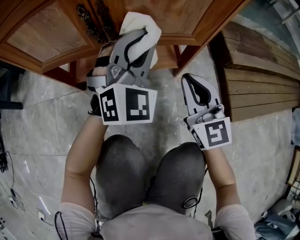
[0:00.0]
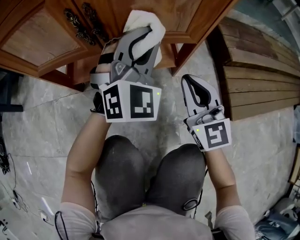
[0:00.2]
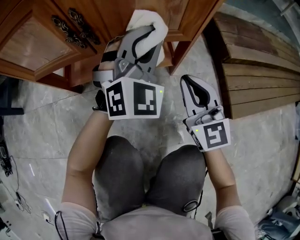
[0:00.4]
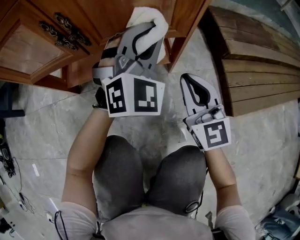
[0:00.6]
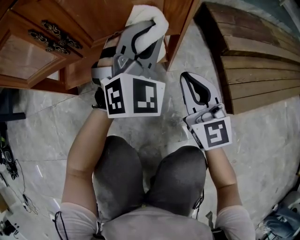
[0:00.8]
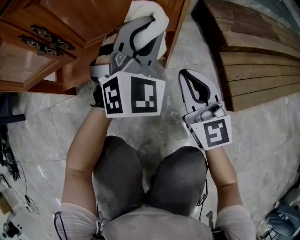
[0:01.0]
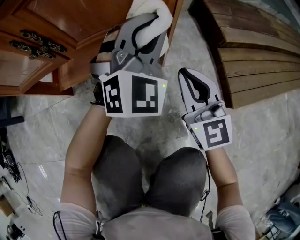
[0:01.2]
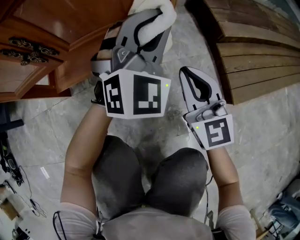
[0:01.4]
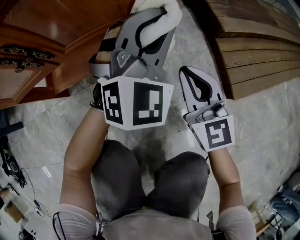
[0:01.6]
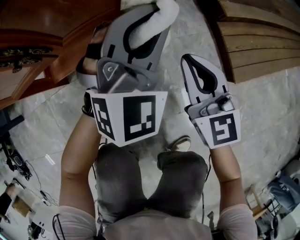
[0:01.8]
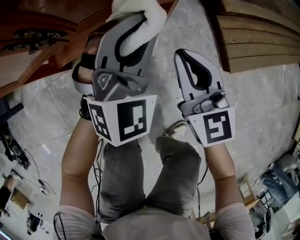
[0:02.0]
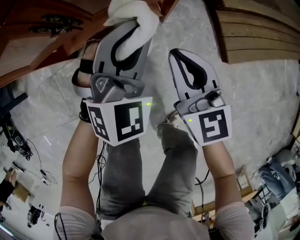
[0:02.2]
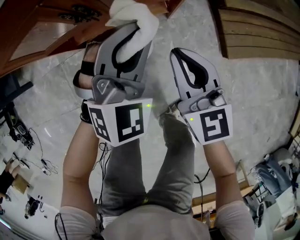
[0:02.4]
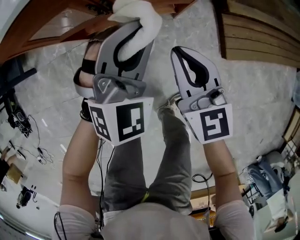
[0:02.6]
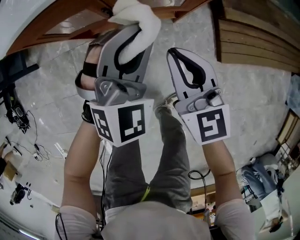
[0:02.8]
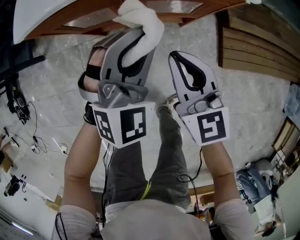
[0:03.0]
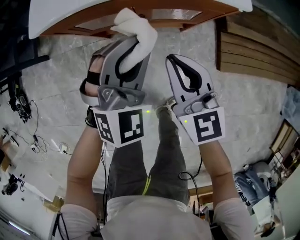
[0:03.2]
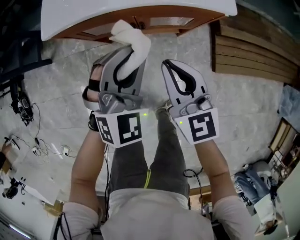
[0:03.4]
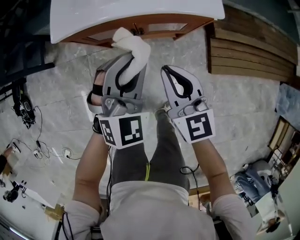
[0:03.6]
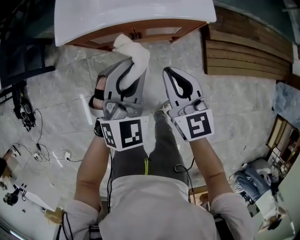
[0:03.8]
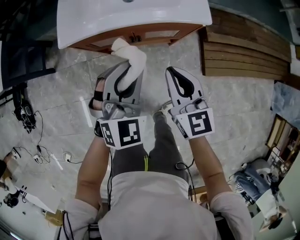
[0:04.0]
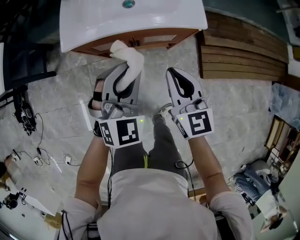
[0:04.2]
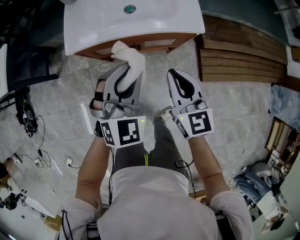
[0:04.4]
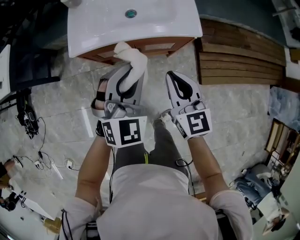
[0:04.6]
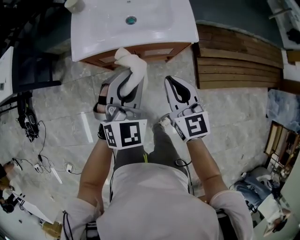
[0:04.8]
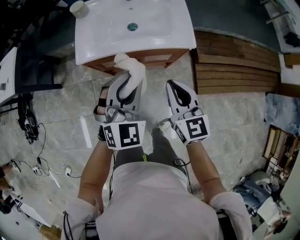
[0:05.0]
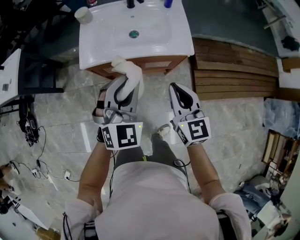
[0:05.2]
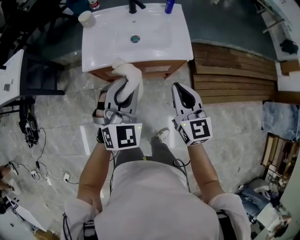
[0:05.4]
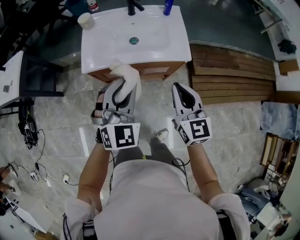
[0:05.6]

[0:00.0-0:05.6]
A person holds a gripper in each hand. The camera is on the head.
0:00.0 to 0:01.4: The left gripper is displaced to the right by roughly 15 cm; the right gripper travels to the right and downward by some 15 cm.
0:01.4 to 0:02.8: The grippers both shift upward and to the left by some 35 cm.
0:02.8 to 0:04.2: The two grippers go roughly 30 cm upward.
0:04.2 to 0:05.6: Both grippers travel together upward, roughly 15 cm.

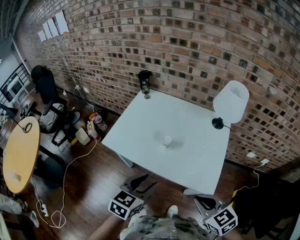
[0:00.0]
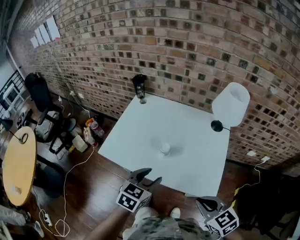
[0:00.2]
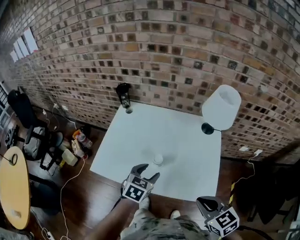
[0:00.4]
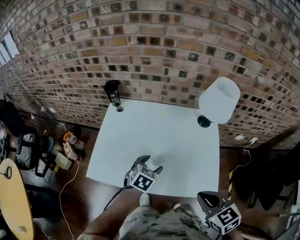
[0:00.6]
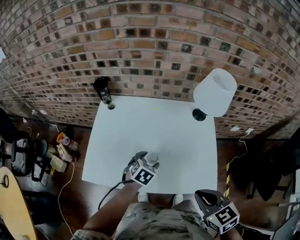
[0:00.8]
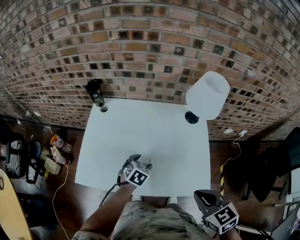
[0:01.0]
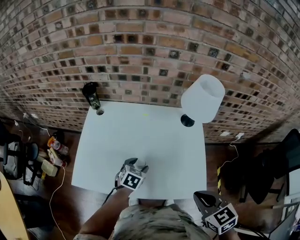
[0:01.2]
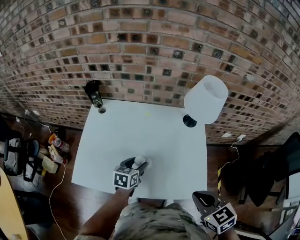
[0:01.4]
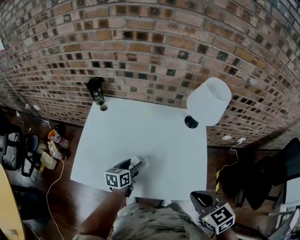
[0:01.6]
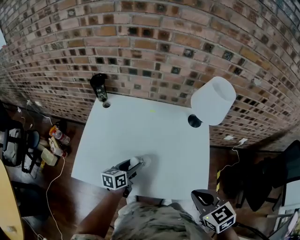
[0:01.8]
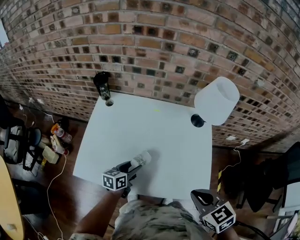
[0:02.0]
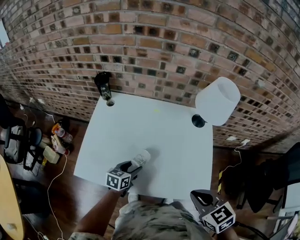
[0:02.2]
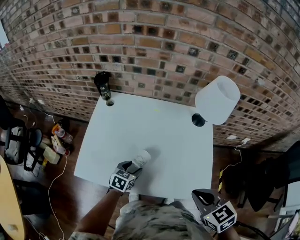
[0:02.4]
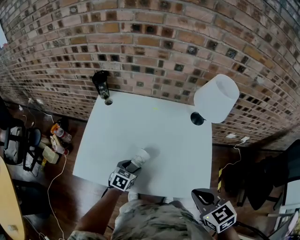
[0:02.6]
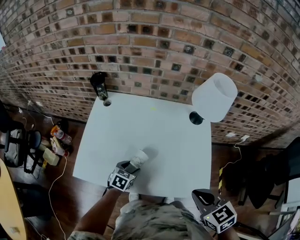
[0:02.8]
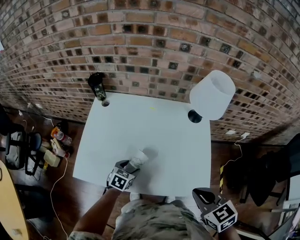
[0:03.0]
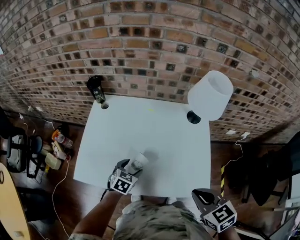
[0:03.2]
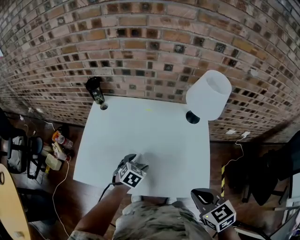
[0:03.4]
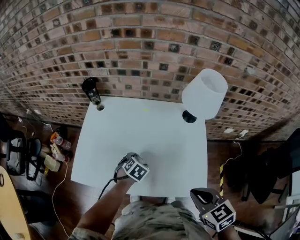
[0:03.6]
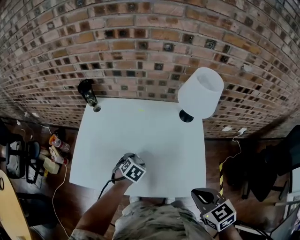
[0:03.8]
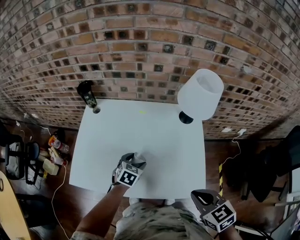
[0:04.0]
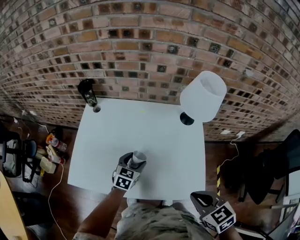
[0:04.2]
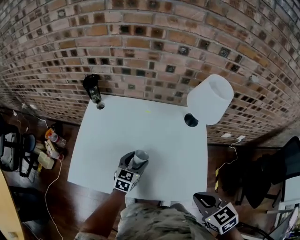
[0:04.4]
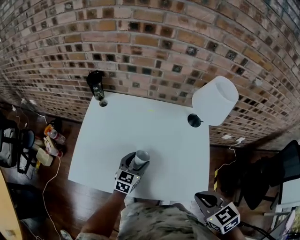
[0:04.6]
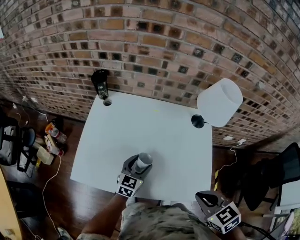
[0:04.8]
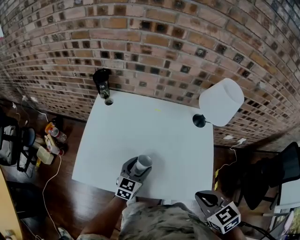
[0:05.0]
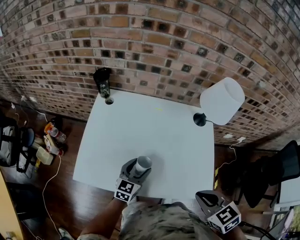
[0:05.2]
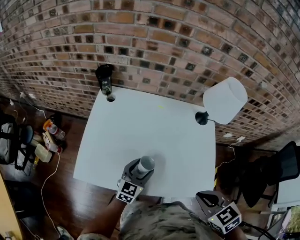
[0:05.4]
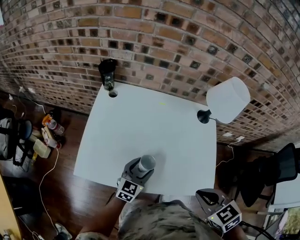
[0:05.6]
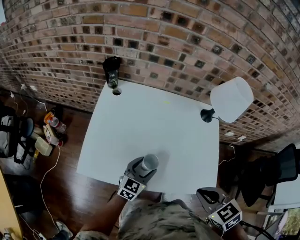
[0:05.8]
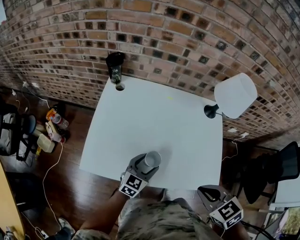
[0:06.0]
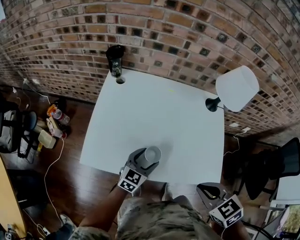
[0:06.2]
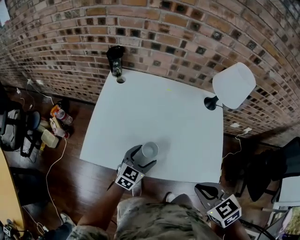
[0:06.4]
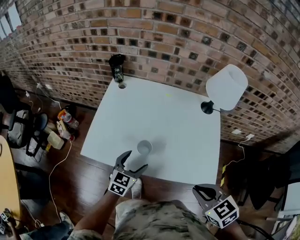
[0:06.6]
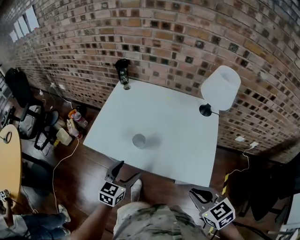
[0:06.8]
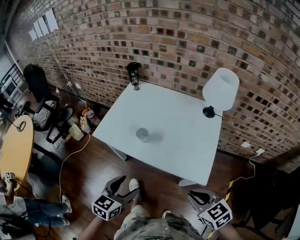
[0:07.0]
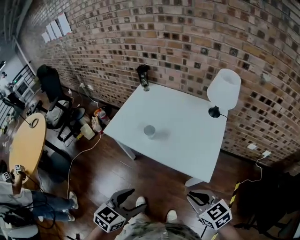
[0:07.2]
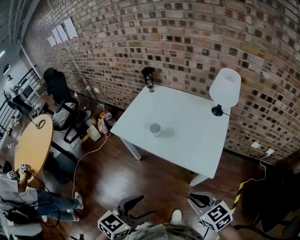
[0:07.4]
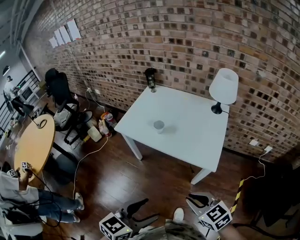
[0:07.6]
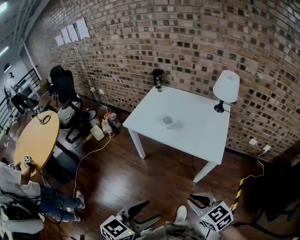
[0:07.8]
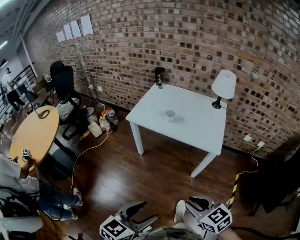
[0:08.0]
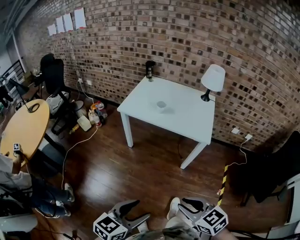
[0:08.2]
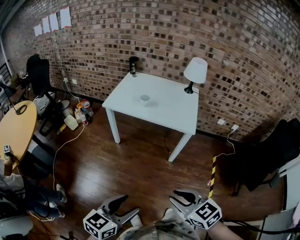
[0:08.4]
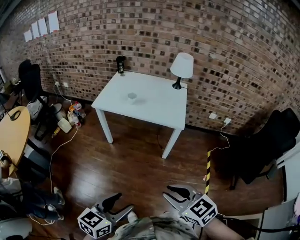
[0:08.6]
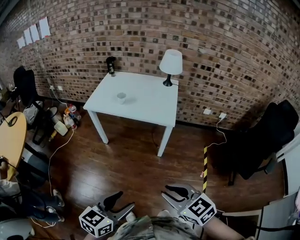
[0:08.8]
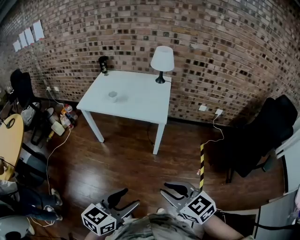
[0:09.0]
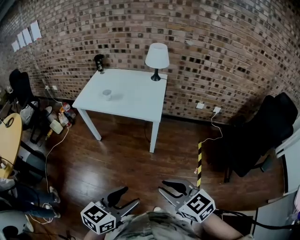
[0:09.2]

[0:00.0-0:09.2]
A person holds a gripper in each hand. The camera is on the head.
0:00.0 to 0:01.6: The left gripper goes about 30 cm forward and downward, and changes its angle by about 30 degrees, while the right gripper is displaced forward by about 15 cm, and changes its angle by about 20 degrees.
0:01.6 to 0:03.0: The left gripper goes some 5 cm downward, and turns by about 30 degrees.
0:03.0 to 0:04.6: The left gripper moves forward and upward, roughly 10 cm, and changes its angle by some 30 degrees.
0:04.6 to 0:06.2: The left gripper travels backward and to the left by roughly 10 cm, while the right gripper travels to the left by roughly 10 cm.
0:06.2 to 0:07.6: The left gripper moves backward and upward, some 60 cm; the right gripper goes approximately 30 cm backward, and rotates about 30 degrees.
0:07.6 to 0:09.2: Both grippers move backward, approximately 30 cm.

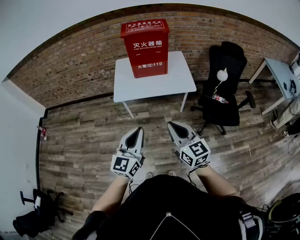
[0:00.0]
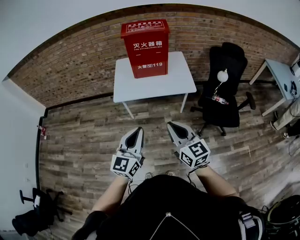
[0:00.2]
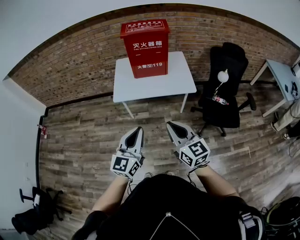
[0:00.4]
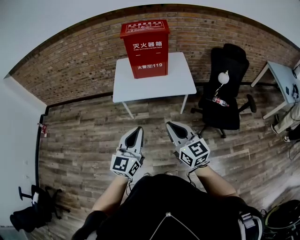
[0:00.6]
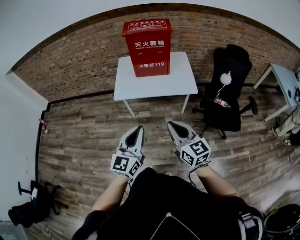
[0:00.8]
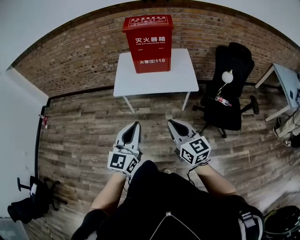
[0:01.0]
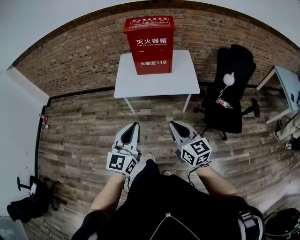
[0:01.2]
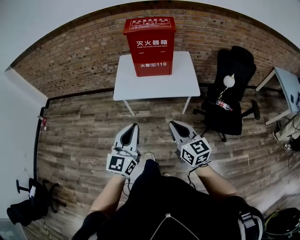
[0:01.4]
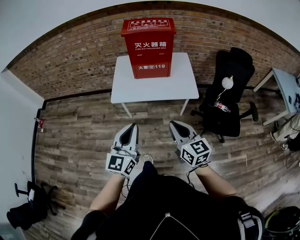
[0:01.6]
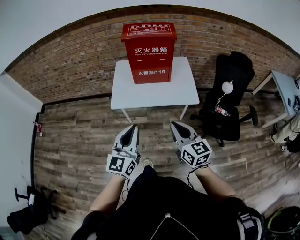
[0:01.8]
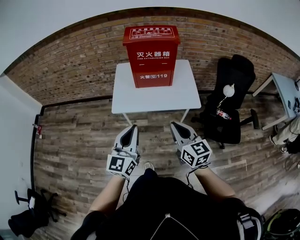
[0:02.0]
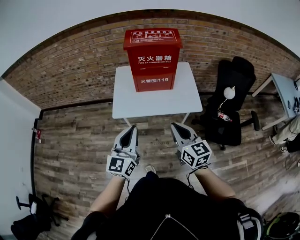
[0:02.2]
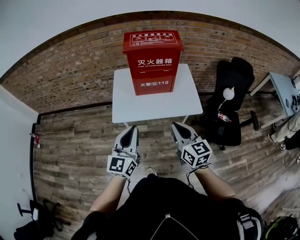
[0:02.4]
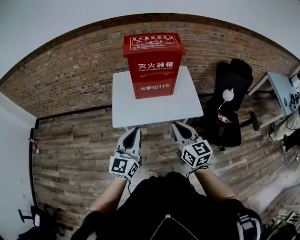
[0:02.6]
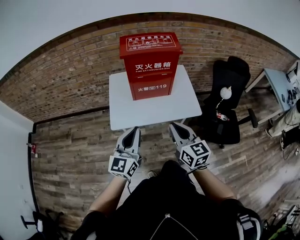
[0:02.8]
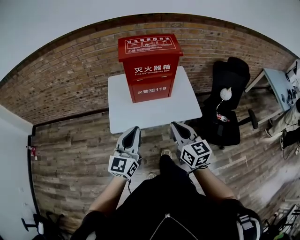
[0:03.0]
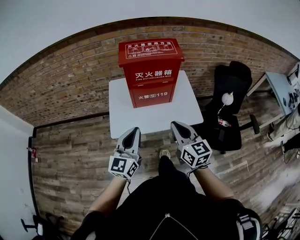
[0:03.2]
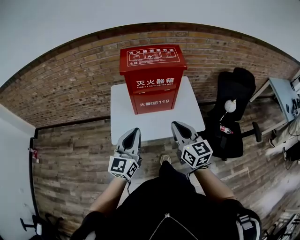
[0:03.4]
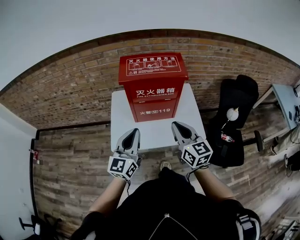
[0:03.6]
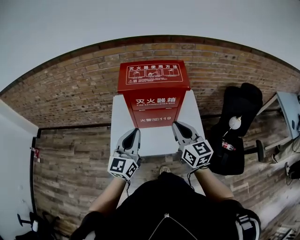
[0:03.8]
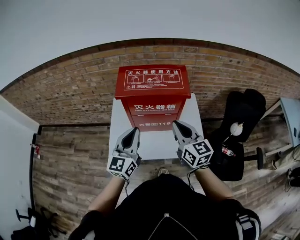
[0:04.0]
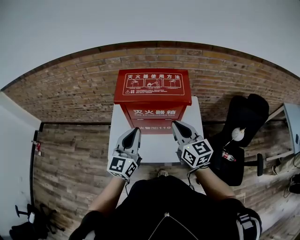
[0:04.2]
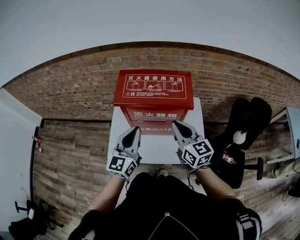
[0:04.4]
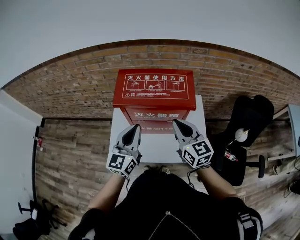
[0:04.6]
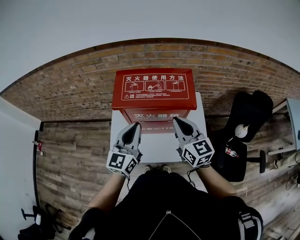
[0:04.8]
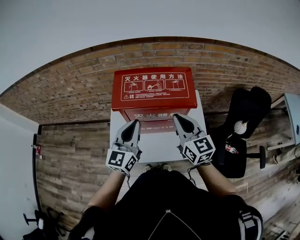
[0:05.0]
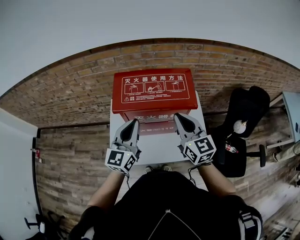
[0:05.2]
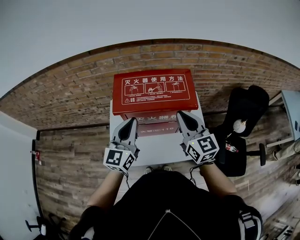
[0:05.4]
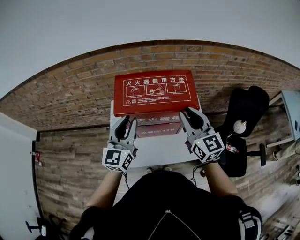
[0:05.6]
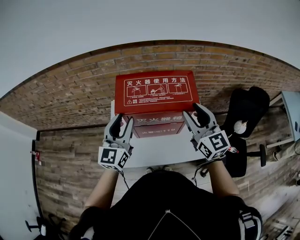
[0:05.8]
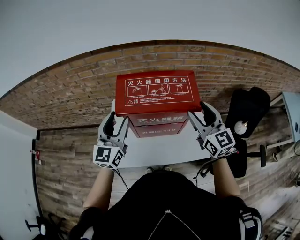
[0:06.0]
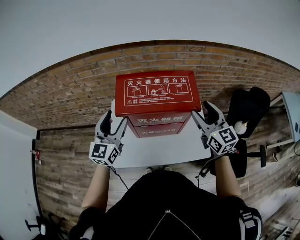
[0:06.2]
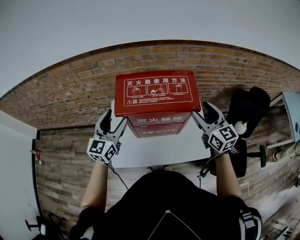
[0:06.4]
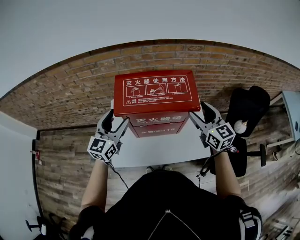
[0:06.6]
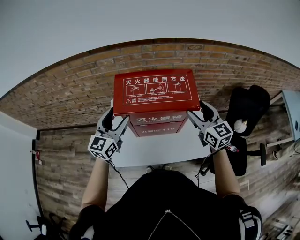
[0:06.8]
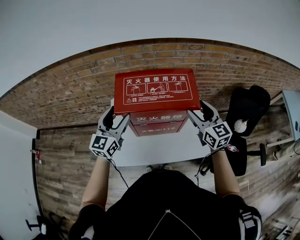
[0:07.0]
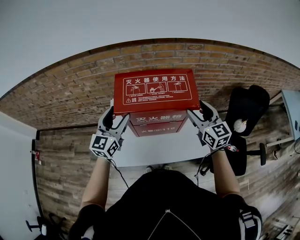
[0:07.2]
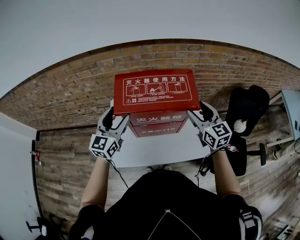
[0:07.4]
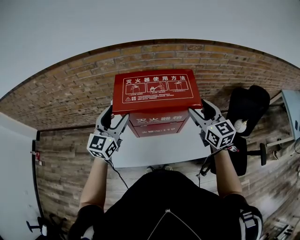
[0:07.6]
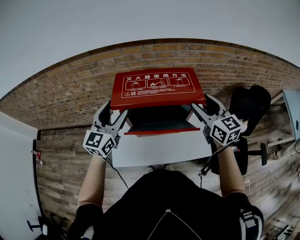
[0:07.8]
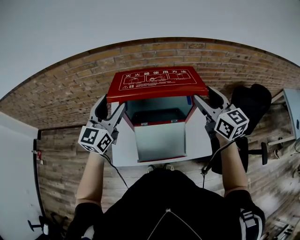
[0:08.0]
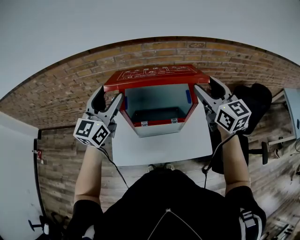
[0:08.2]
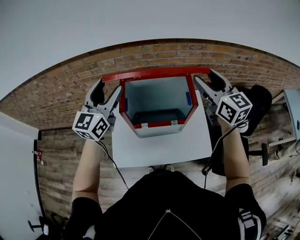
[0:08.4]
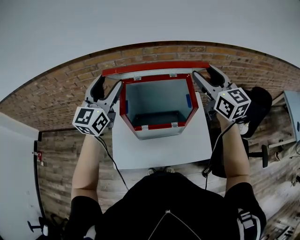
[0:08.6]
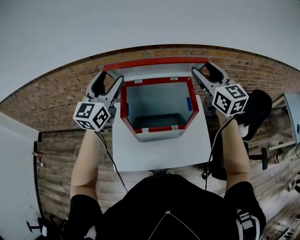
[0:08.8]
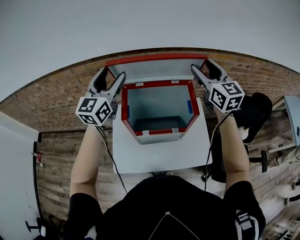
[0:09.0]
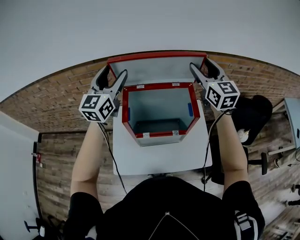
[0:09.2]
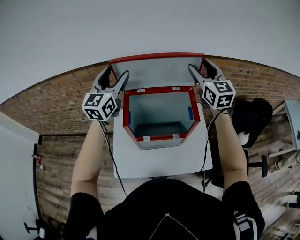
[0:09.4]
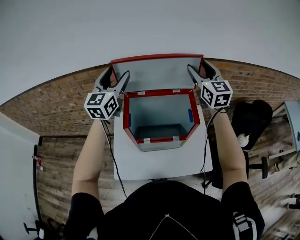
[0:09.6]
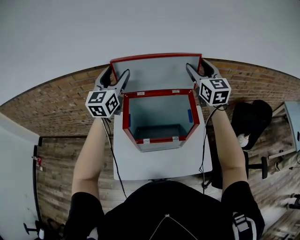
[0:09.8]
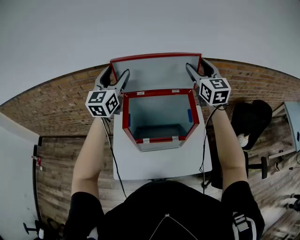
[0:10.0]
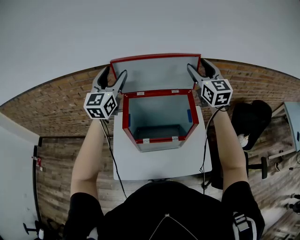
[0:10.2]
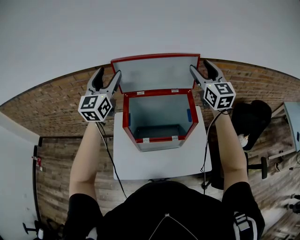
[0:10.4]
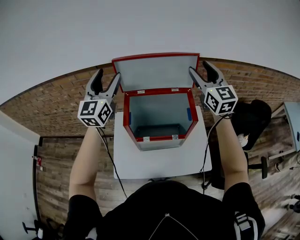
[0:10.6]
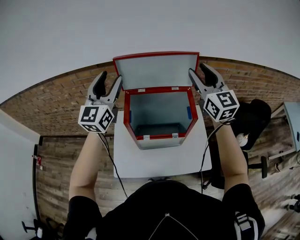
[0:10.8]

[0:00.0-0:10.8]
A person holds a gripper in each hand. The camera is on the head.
0:00.0 to 0:01.6: Both grippers move forward, about 10 cm.
0:01.6 to 0:03.0: The two grippers go approximately 20 cm forward.
0:03.0 to 0:04.6: Both grippers move forward, approximately 30 cm.
0:04.6 to 0:06.2: The right gripper travels to the right and forward by roughly 10 cm, and opens, while the left gripper is displaced to the left and forward by approximately 15 cm, and opens.
0:06.2 to 0:07.8: The grippers stay close to where they were, moving slightly.
0:07.8 to 0:09.2: Both grippers move forward and upward, about 20 cm.
0:09.2 to 0:10.8: The grippers both shift backward by about 5 cm.
